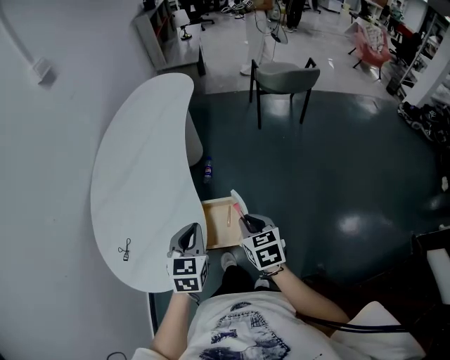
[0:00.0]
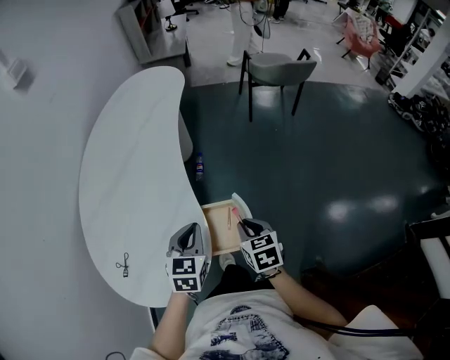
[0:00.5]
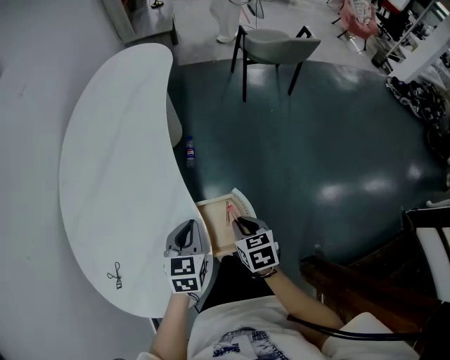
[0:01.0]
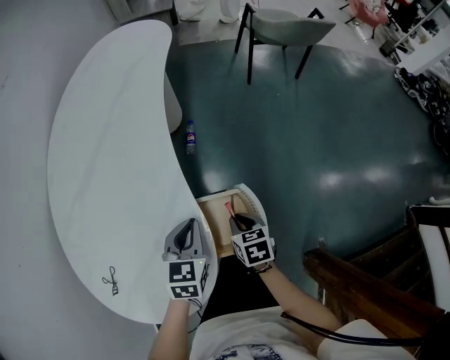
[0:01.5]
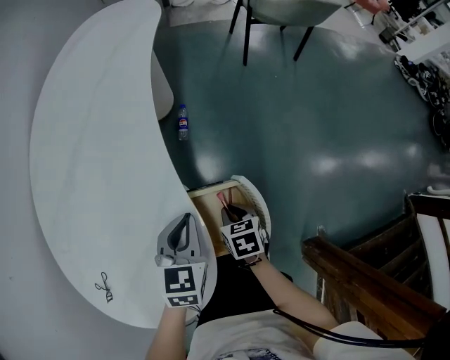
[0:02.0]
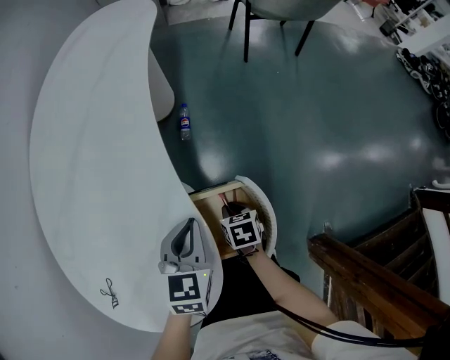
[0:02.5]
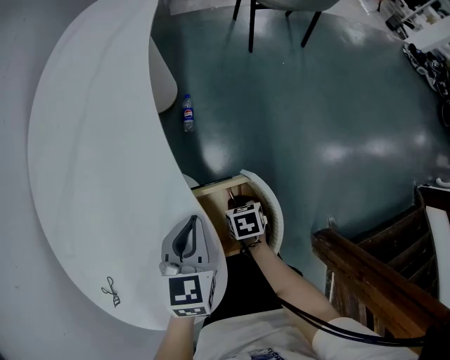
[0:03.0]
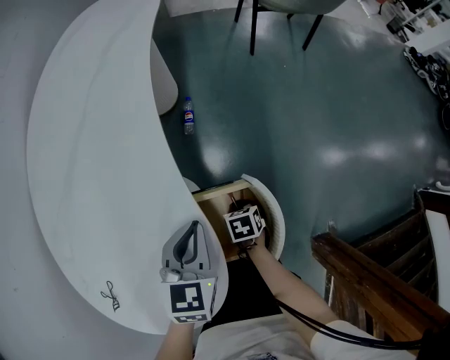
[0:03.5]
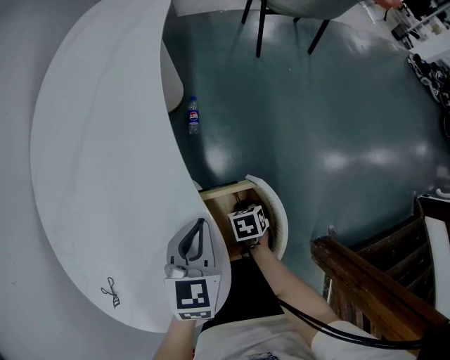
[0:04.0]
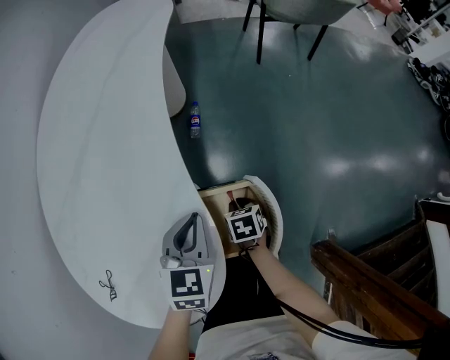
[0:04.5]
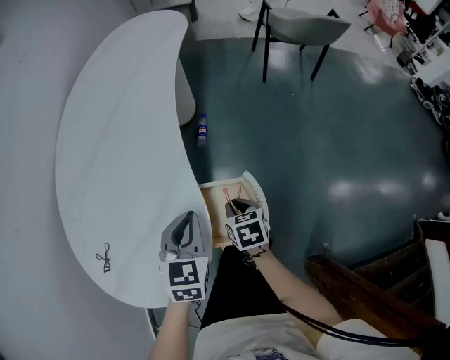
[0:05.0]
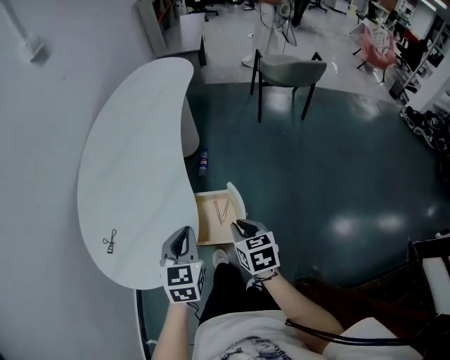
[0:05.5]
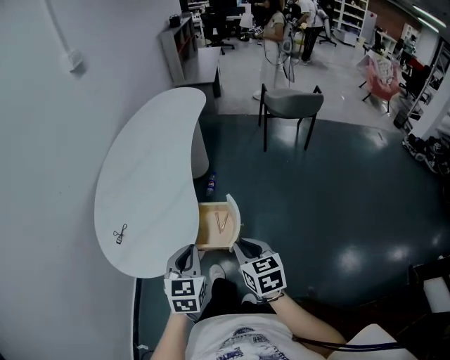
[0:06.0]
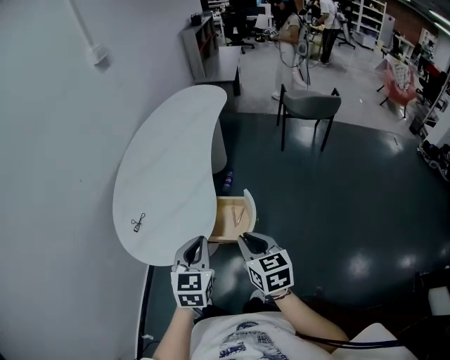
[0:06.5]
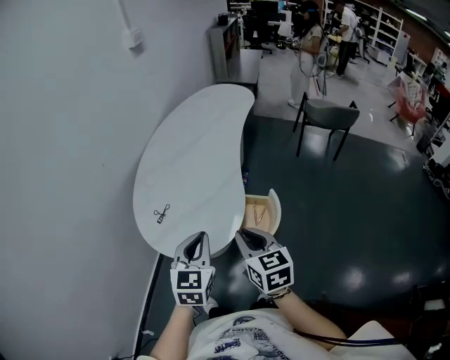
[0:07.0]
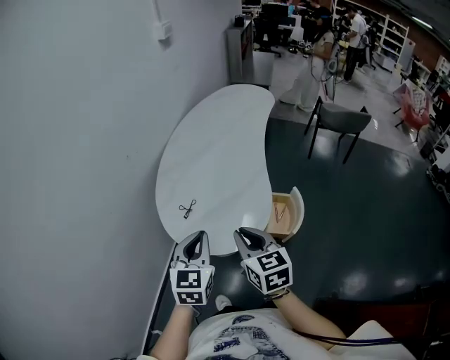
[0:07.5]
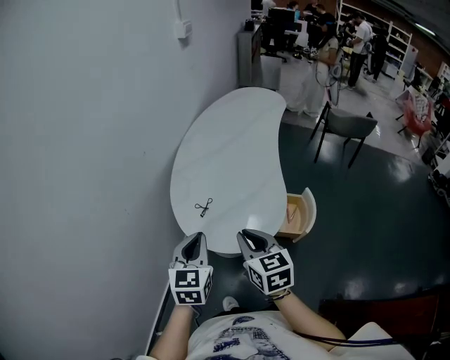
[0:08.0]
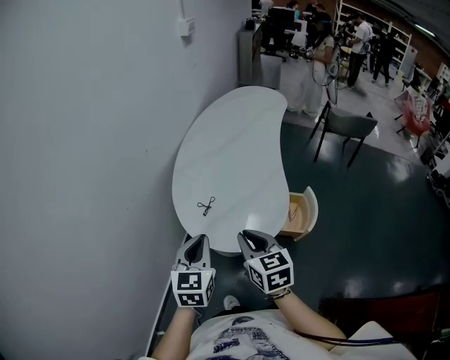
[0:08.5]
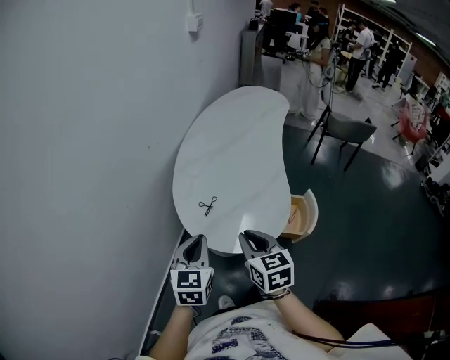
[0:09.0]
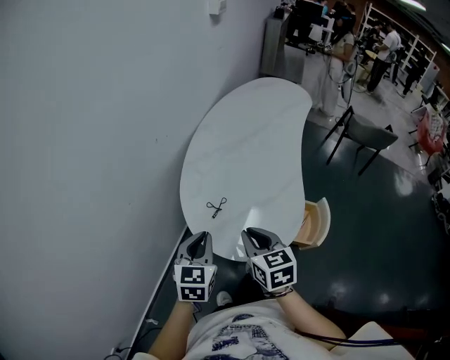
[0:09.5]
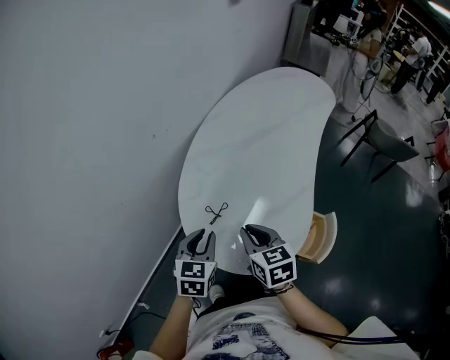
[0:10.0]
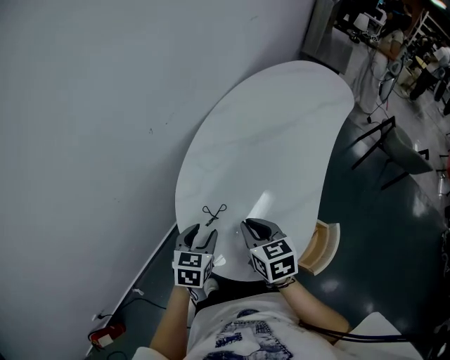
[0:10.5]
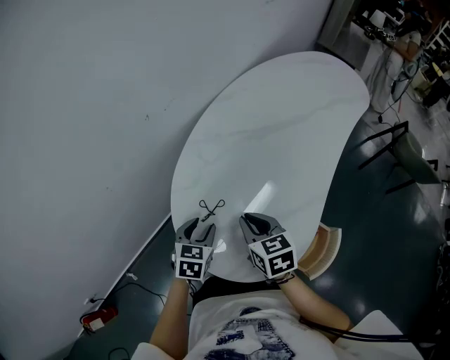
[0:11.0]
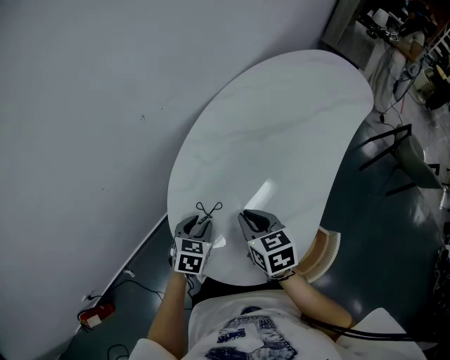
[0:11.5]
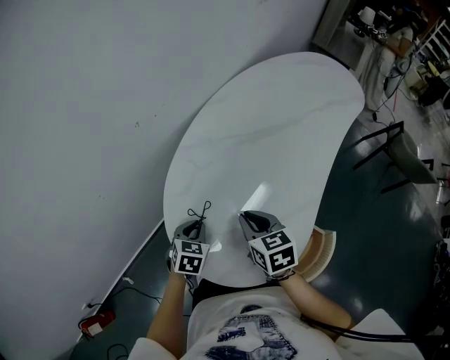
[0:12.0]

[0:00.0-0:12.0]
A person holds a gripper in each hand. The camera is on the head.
0:00.0 to 0:02.0: The left gripper is displaced downward and forward by about 20 cm. Meanwhile the right gripper shifts some 25 cm downward, and swivels approximately 20 degrees.
0:02.0 to 0:04.0: The right gripper moves downward, roughly 10 cm.
0:04.0 to 0:06.0: The left gripper travels backward and upward by approximately 35 cm, and swivels roughly 20 degrees, while the right gripper travels upward and backward by some 50 cm, and points its fingers approximately 40 degrees further upward.
0:06.0 to 0:08.0: Both grippers travel together to the left, roughly 35 cm.
0:08.0 to 0:10.0: The grippers both shift forward and downward by about 20 cm.
0:10.0 to 0:12.0: The left gripper is displaced downward and forward by approximately 15 cm, and opens and closes again. The right gripper moves forward, downward and to the right, roughly 10 cm.

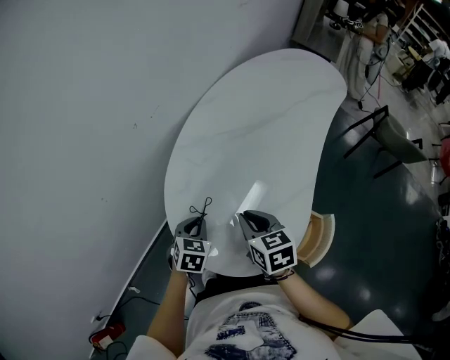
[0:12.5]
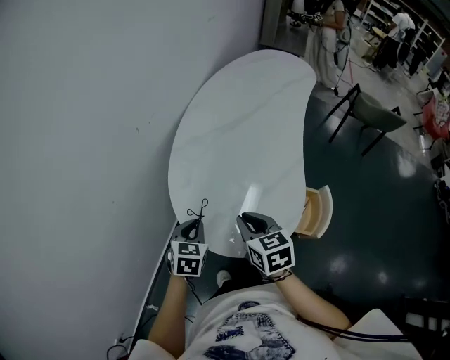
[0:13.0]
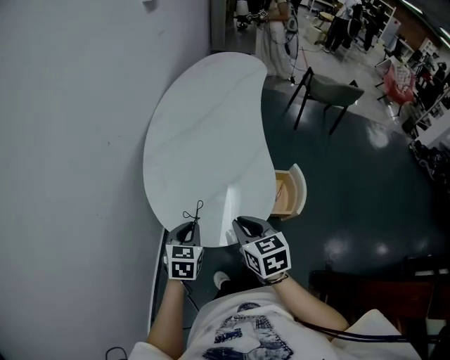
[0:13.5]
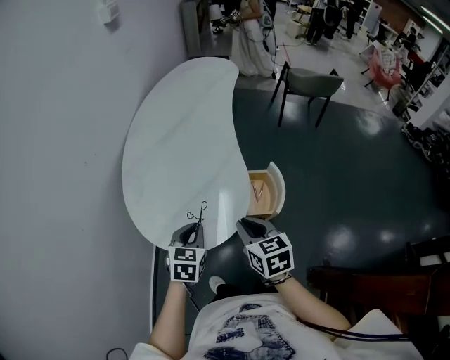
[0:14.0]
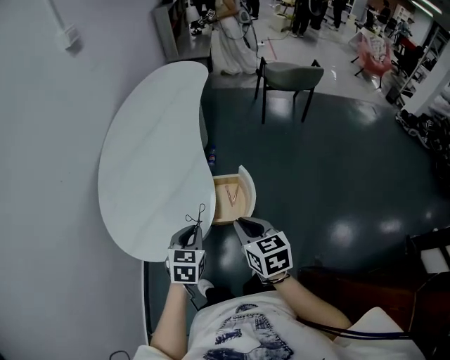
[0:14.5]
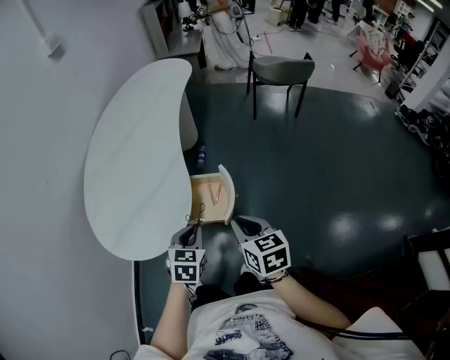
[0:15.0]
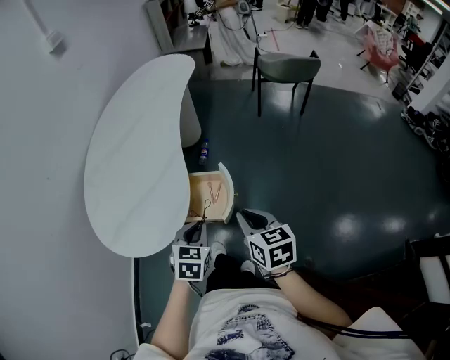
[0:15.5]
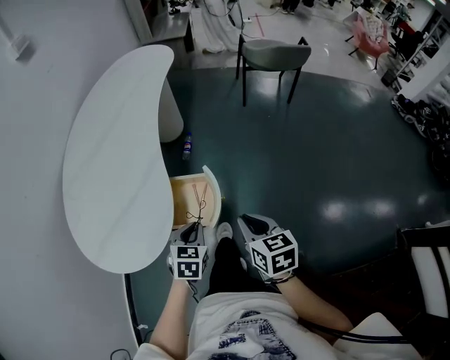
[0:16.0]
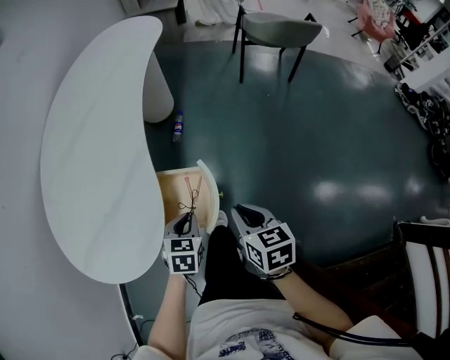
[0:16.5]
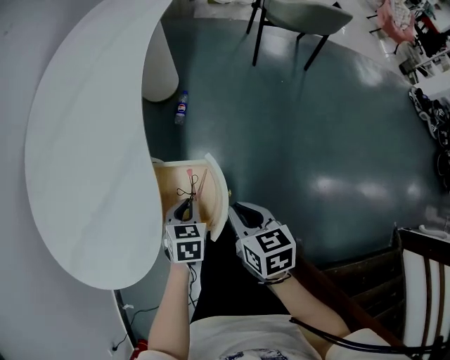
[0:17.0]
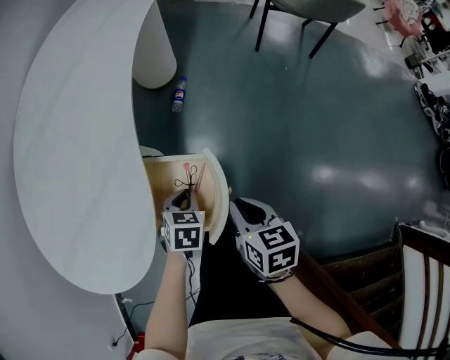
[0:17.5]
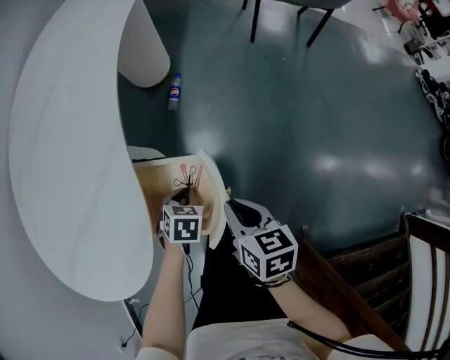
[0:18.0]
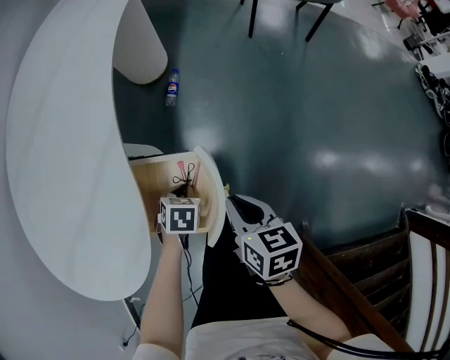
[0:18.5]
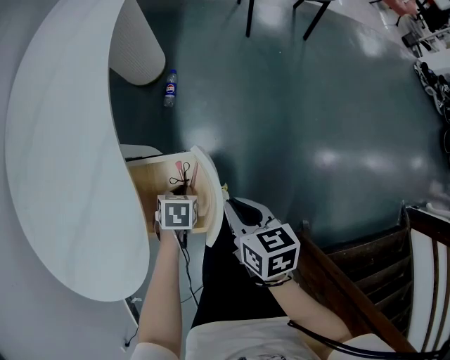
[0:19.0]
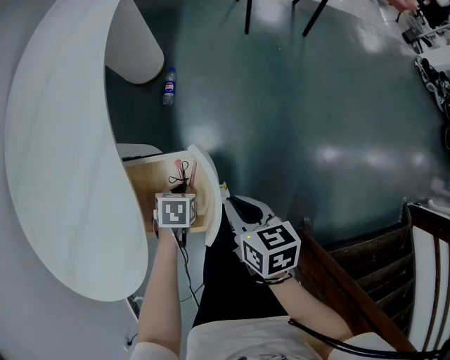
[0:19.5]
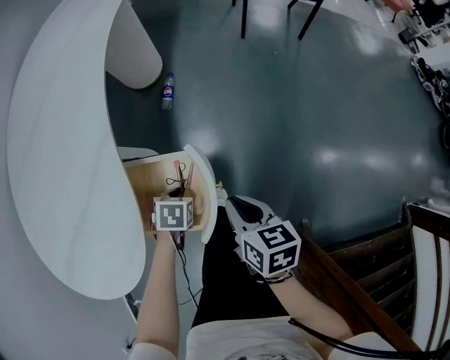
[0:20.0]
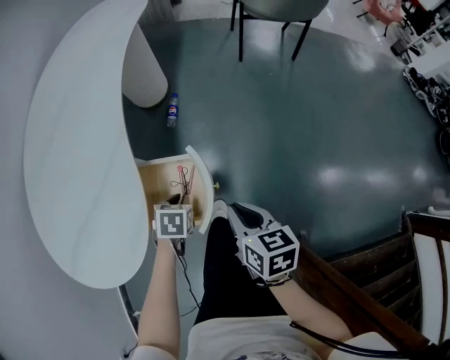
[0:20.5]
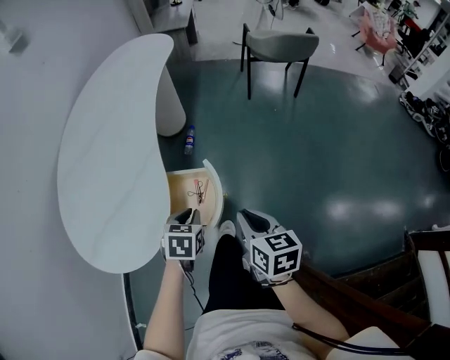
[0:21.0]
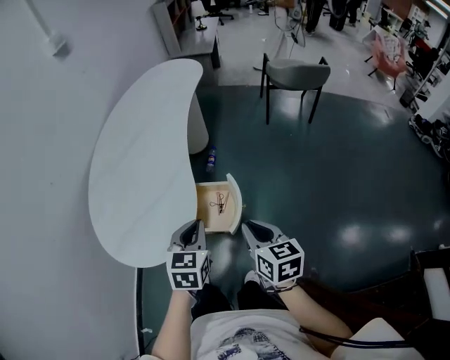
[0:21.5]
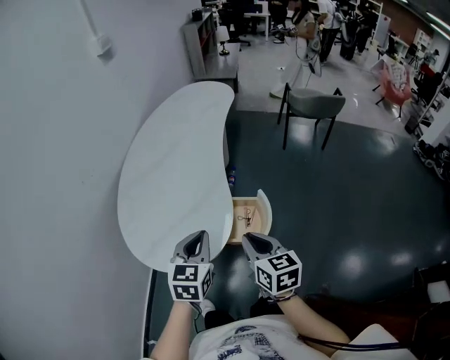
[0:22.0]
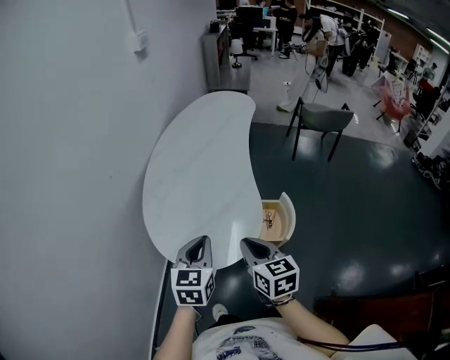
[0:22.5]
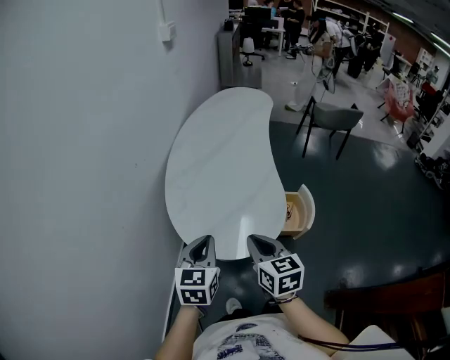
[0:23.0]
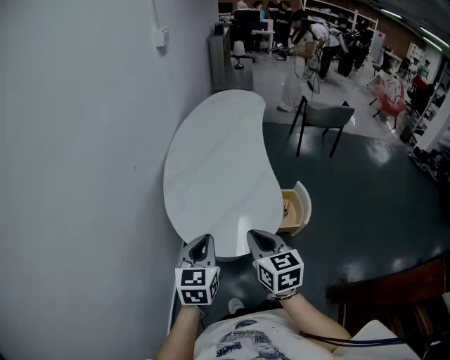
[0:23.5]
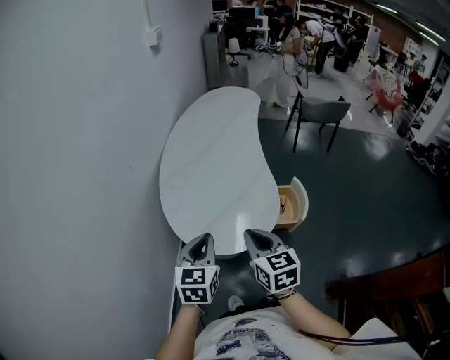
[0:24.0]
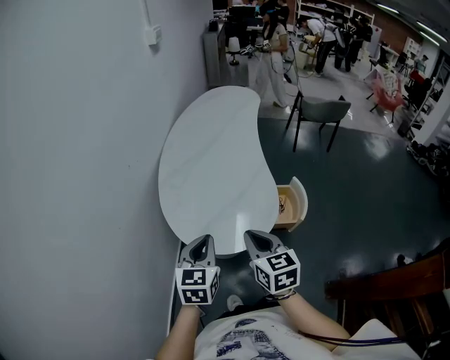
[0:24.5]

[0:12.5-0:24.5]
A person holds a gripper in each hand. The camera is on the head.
0:12.5 to 0:14.5: The left gripper shifts by some 35 cm, and rotates about 30 degrees; the right gripper changes place by approximately 35 cm, and turns by roughly 30 degrees.
0:14.5 to 0:16.5: The left gripper is displaced downward, to the right and forward by roughly 25 cm, while the right gripper heads to the right, downward and forward, covering about 25 cm.
0:16.5 to 0:18.5: The two grippers go some 15 cm downward. The left gripper turns by some 20 degrees.
0:18.5 to 0:20.5: The left gripper travels upward by approximately 5 cm; the right gripper ends up roughly 10 cm from where it was.
0:20.5 to 0:22.5: The left gripper heads upward and to the left, covering some 50 cm, and tips its fingers upward by some 40 degrees. The right gripper is displaced to the left and upward by roughly 50 cm, and changes its angle by some 20 degrees.
0:22.5 to 0:24.5: The right gripper heads to the left, covering about 10 cm; the left gripper heads to the left and backward, covering about 10 cm.

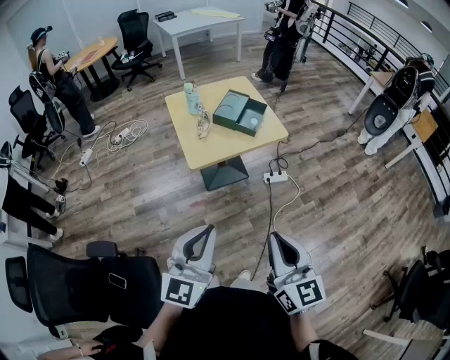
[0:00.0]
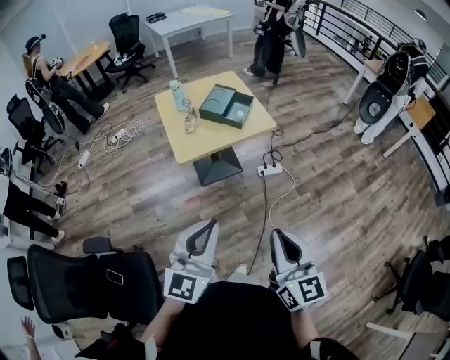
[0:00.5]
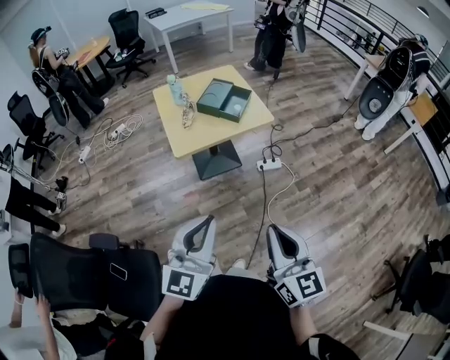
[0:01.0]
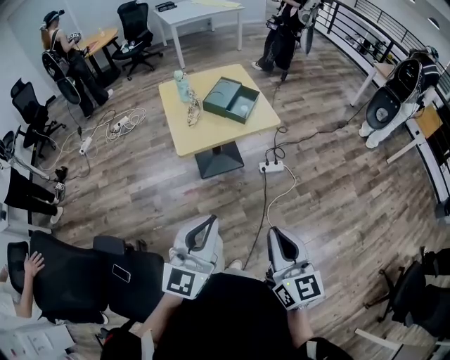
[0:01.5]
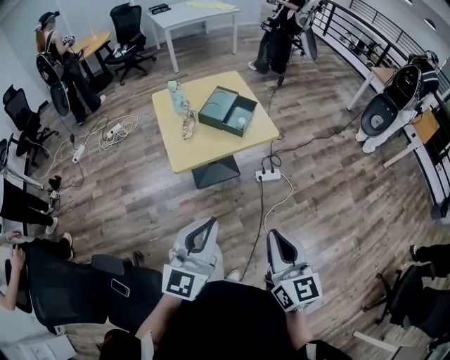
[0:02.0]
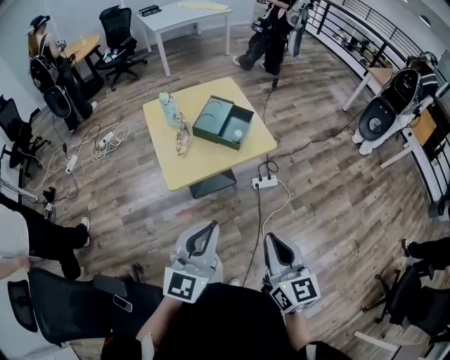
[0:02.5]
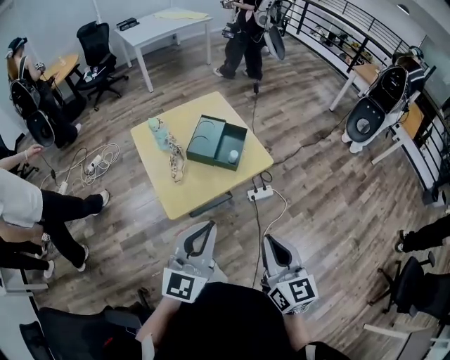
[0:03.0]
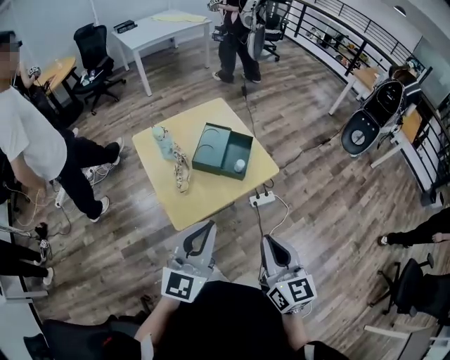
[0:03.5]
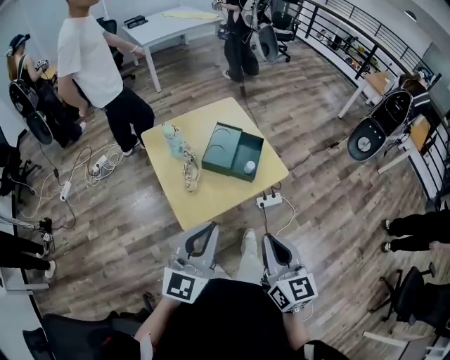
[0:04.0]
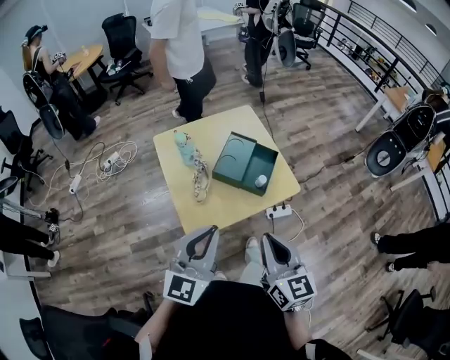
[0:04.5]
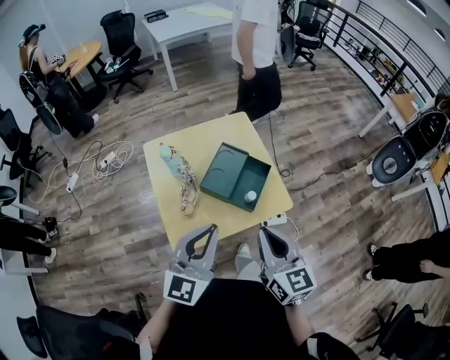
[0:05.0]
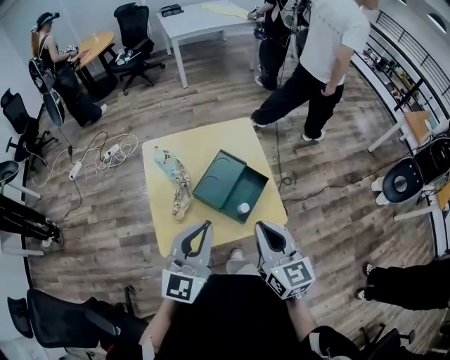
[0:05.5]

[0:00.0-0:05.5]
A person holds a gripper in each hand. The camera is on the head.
0:00.0 to 0:02.0: The two grippers go approximately 10 cm to the right and forward.
0:02.0 to 0:03.5: Both grippers travel together forward and to the left, approximately 25 cm.
0:03.5 to 0:05.5: The grippers both shift forward by about 25 cm. The right gripper swivels about 20 degrees.
